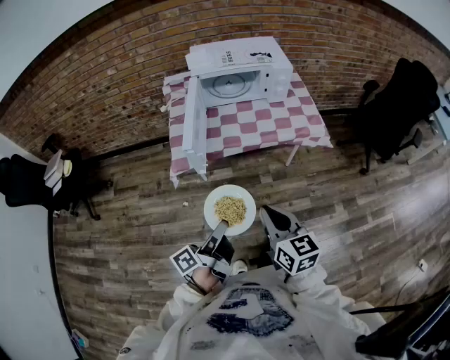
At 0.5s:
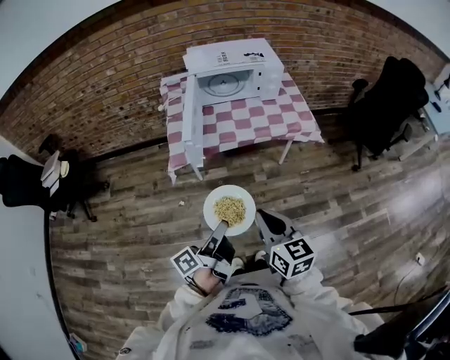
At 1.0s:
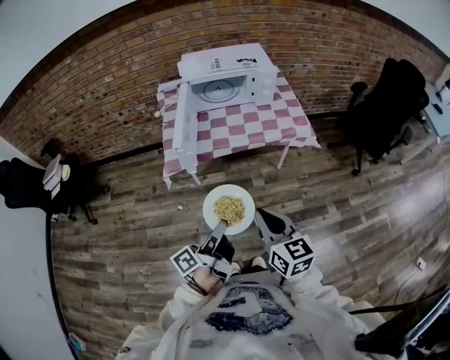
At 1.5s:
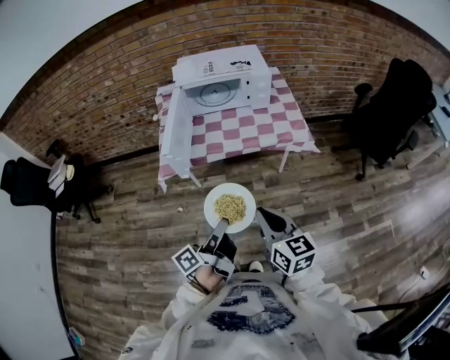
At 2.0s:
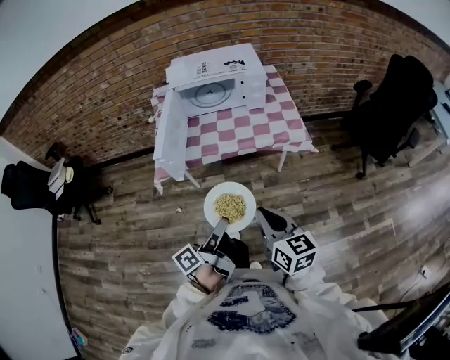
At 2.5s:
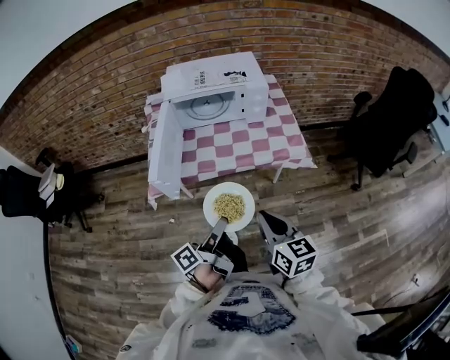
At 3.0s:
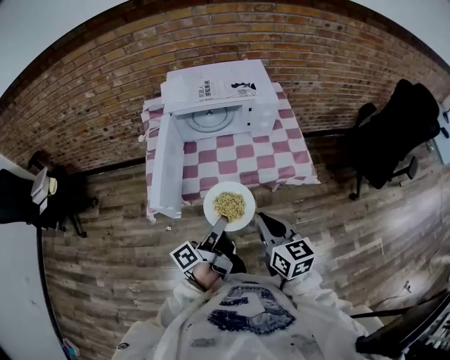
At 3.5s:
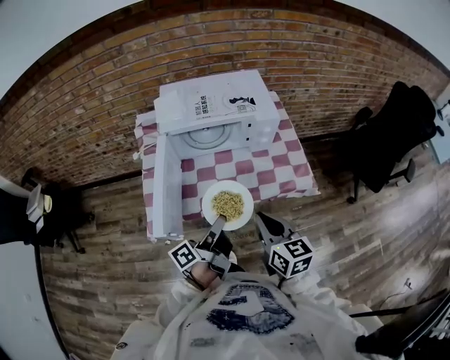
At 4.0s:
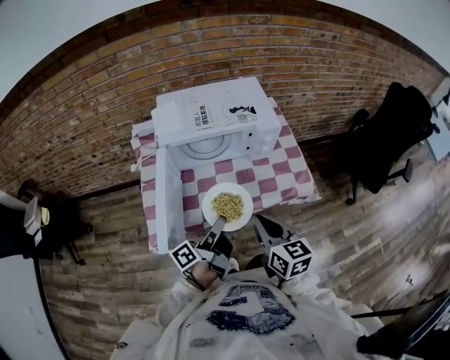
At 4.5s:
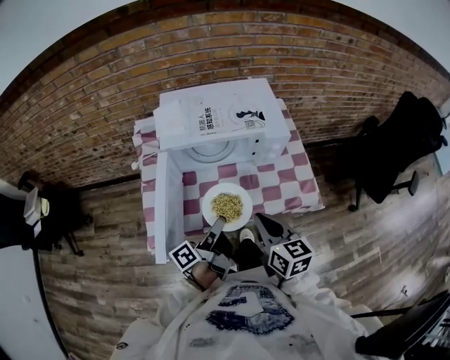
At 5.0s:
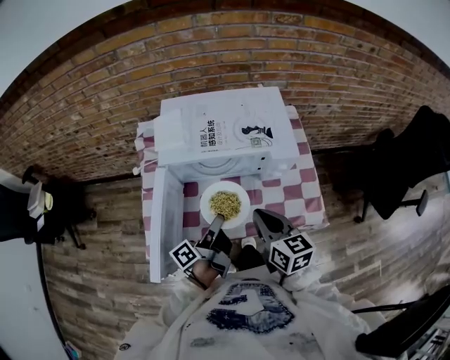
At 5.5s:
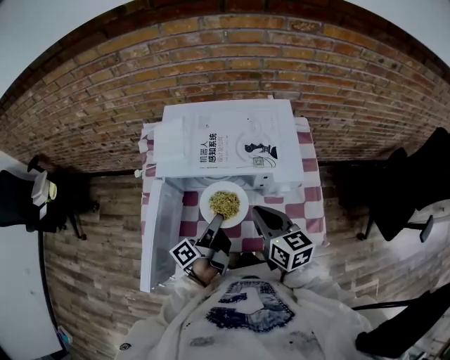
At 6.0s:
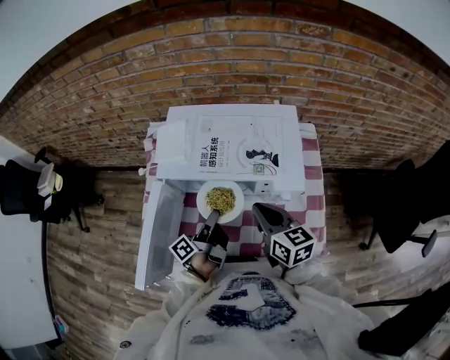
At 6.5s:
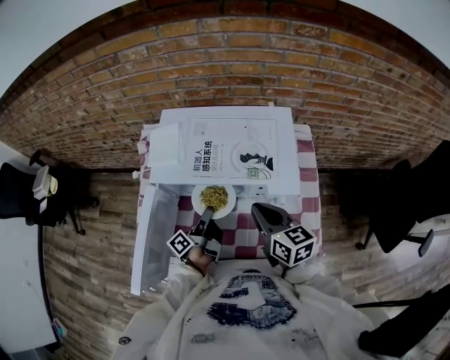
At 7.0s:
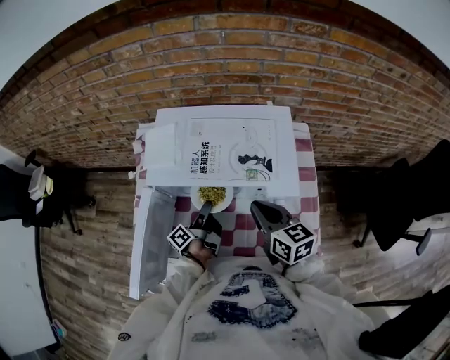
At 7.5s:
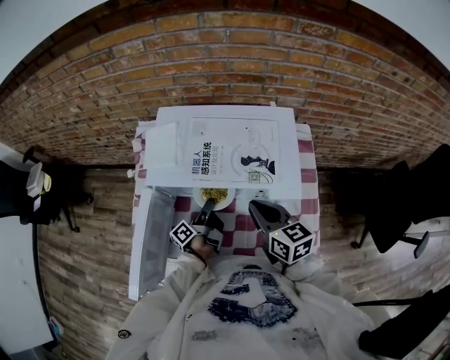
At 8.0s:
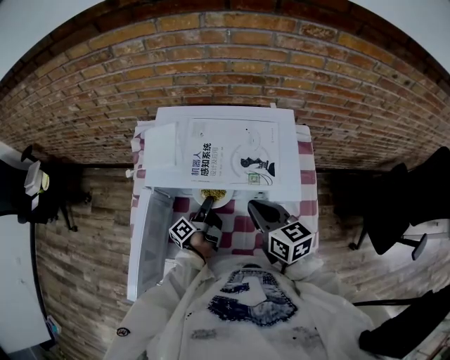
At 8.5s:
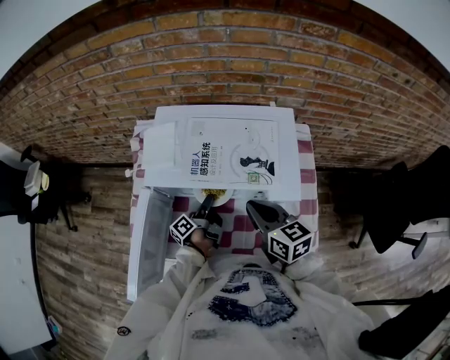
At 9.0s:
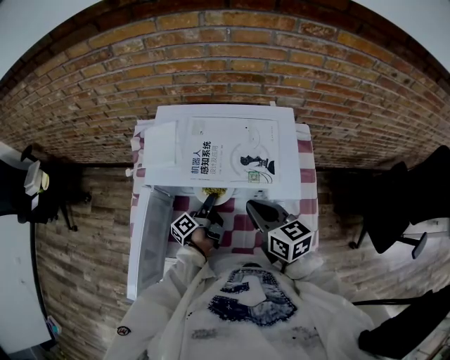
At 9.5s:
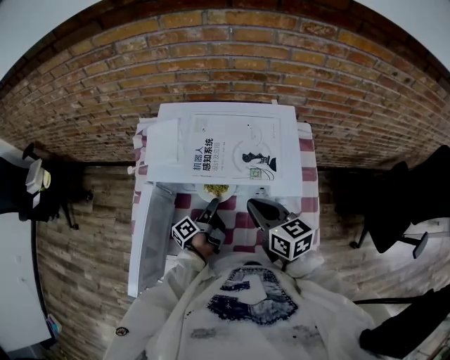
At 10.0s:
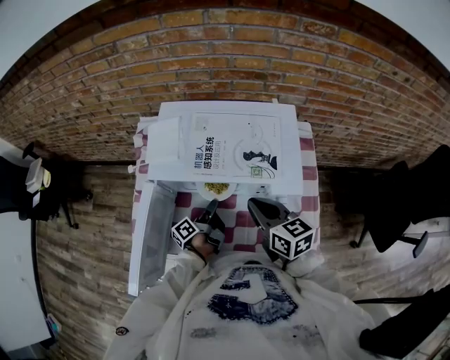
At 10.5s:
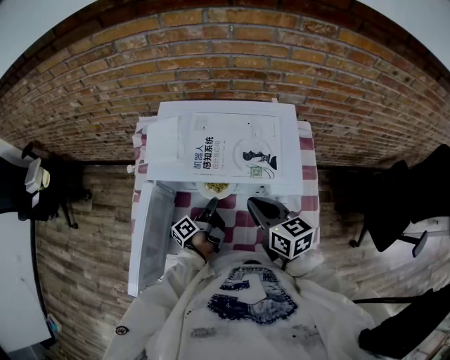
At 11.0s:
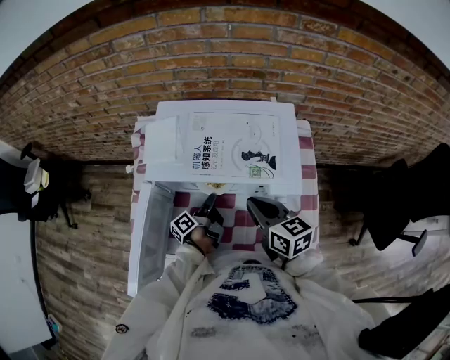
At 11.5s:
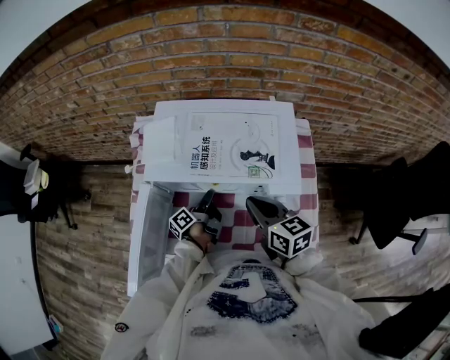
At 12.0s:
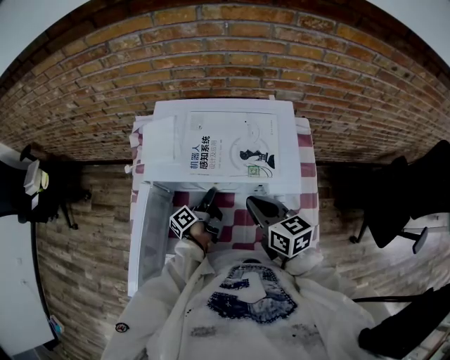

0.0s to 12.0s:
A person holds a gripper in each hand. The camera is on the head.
0.0s to 2.0s: The right gripper ends up some 10 cm from where it was.
2.0s to 4.0s: The right gripper changes place by about 30 cm.
4.0s to 6.0s: The right gripper changes place by roughly 25 cm, and swivels about 20 degrees.

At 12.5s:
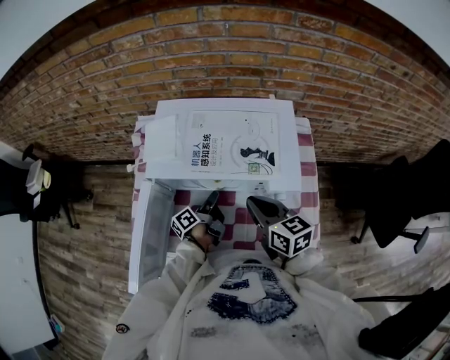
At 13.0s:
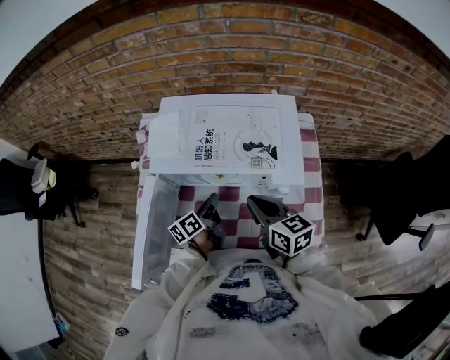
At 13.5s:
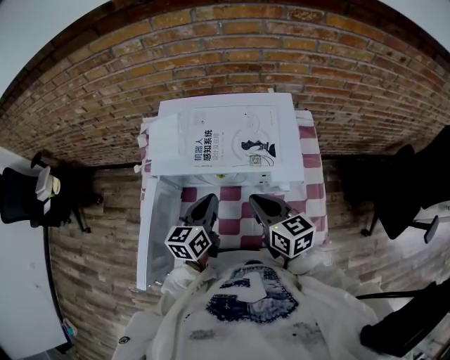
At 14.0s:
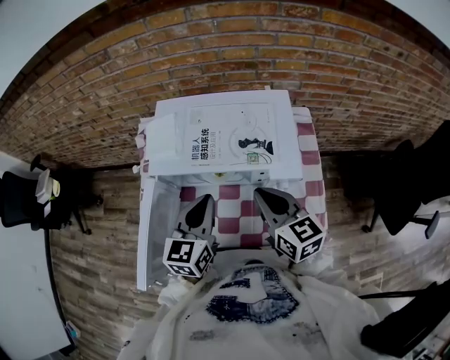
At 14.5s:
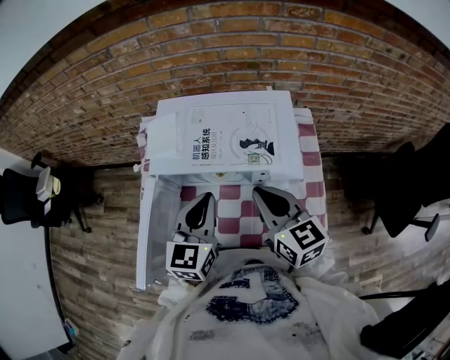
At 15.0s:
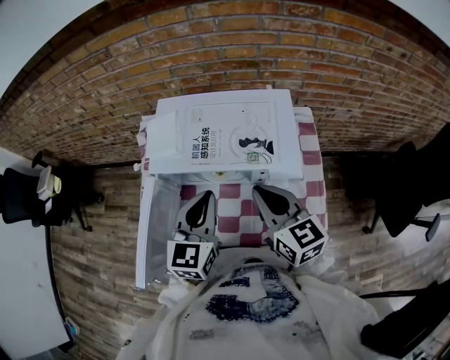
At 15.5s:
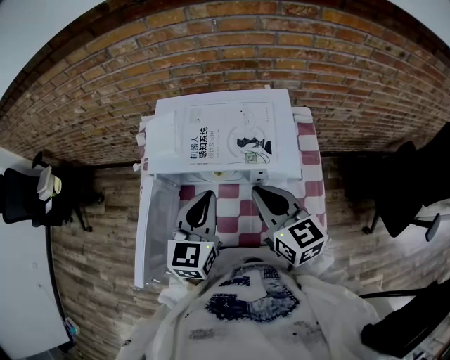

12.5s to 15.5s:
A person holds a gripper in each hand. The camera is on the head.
12.5s to 14.0s: The right gripper heads upward, covering roughly 5 cm.

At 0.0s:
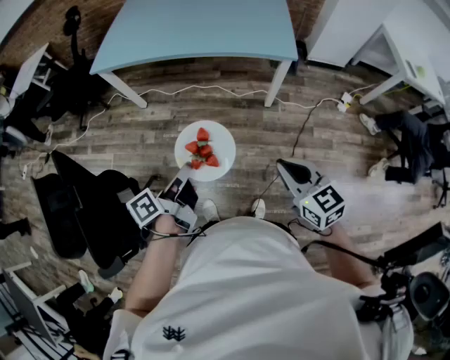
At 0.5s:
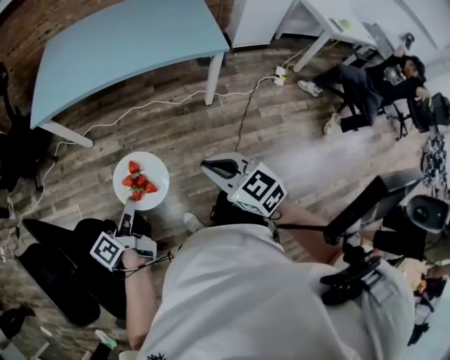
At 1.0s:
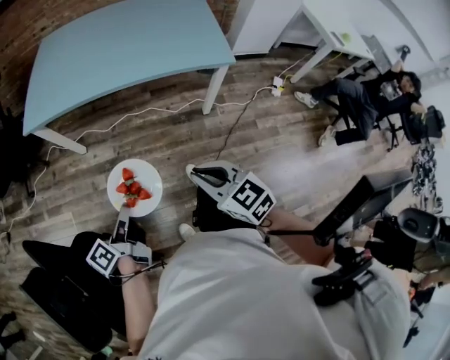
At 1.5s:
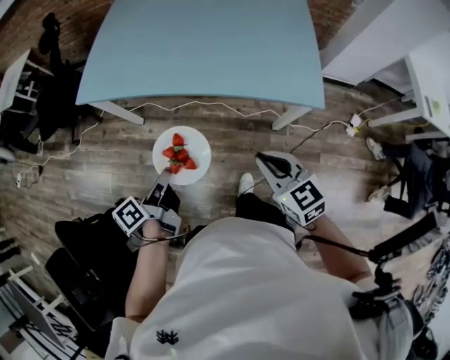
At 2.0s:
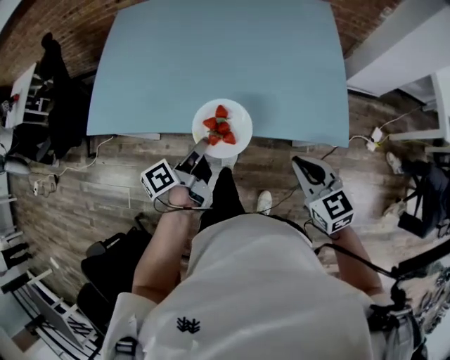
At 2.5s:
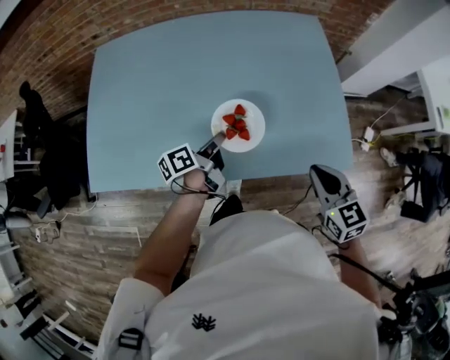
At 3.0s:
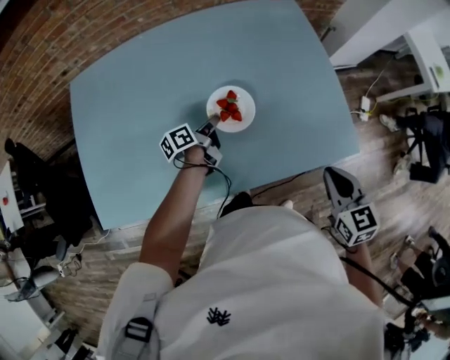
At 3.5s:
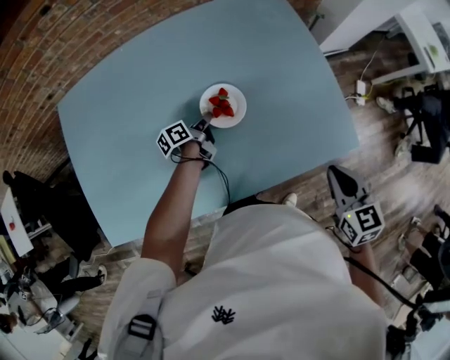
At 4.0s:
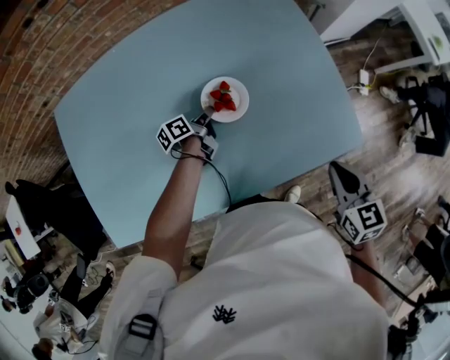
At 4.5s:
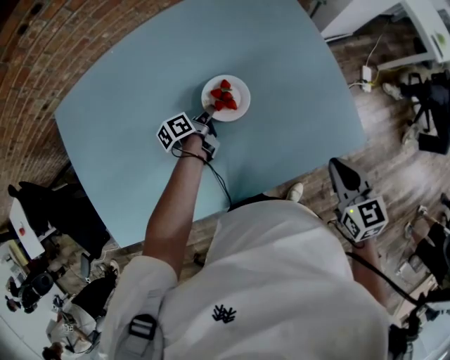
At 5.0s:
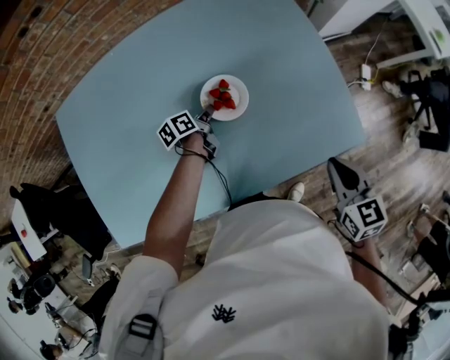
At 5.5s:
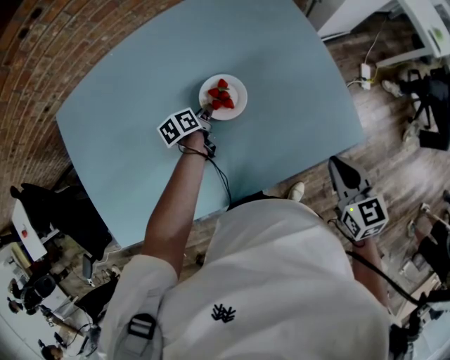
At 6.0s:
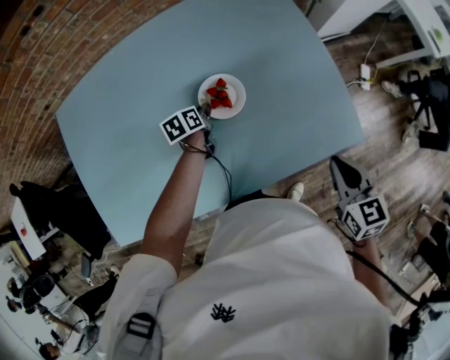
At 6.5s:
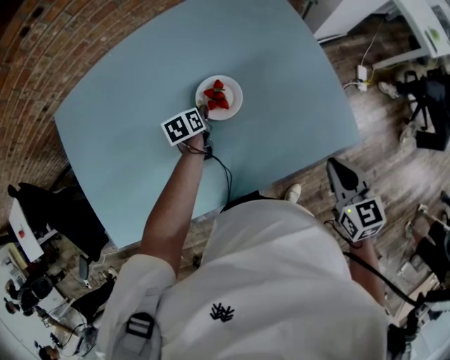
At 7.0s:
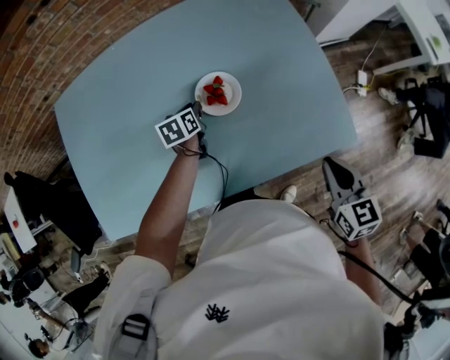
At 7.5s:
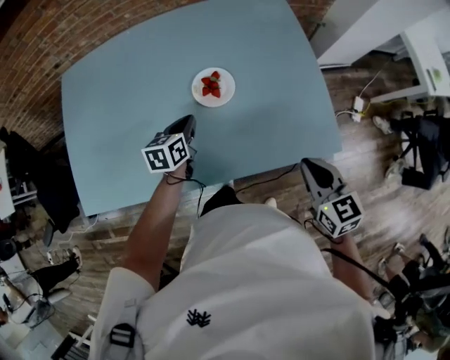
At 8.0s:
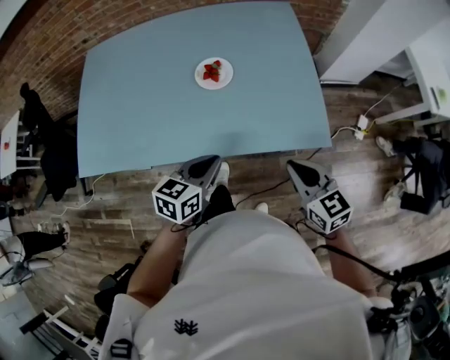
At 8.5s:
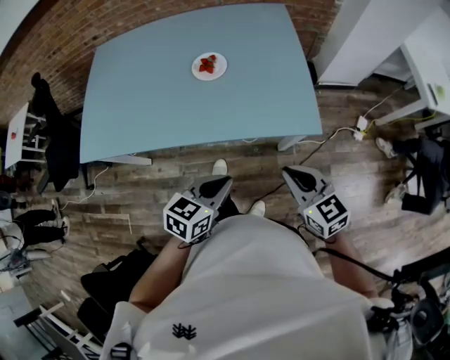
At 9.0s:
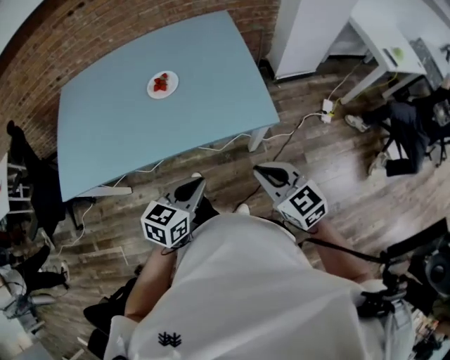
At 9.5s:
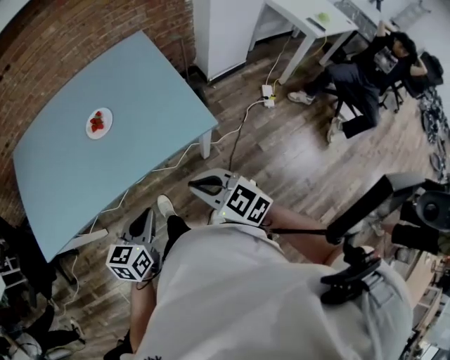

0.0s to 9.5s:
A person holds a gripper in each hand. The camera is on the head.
0.0s to 2.0s: The left gripper travels upward by some 5 cm, goes backward and returns, about 15 cm each way, and turns by about 30 degrees. The right gripper moves forward and backward over roughly 15 cm, changing direction 2 times, and turns by about 30 degrees.
2.0s to 4.0s: The left gripper ends up about 40 cm from where it was, and changes its angle by approximately 30 degrees; the right gripper moves about 15 cm, and swivels approximately 40 degrees.
4.0s to 5.5s: The left gripper changes its angle by approximately 20 degrees.
5.5s to 7.5s: The left gripper is displaced upward and backward by roughly 15 cm, and swivels approximately 30 degrees.
7.5s to 9.5s: The right gripper goes roughly 20 cm backward, and rotates roughly 20 degrees. Meanwhile the left gripper goes about 40 cm backward and to the right, and changes its angle by some 20 degrees.

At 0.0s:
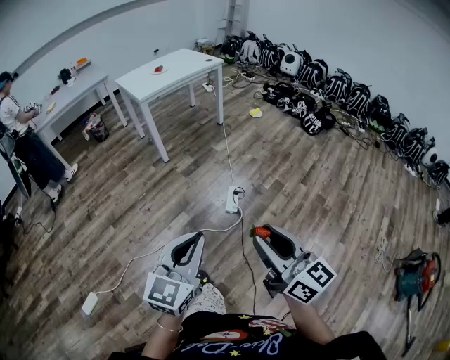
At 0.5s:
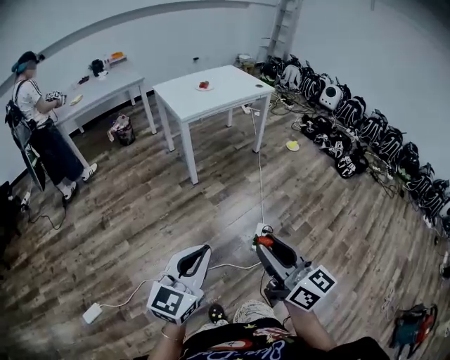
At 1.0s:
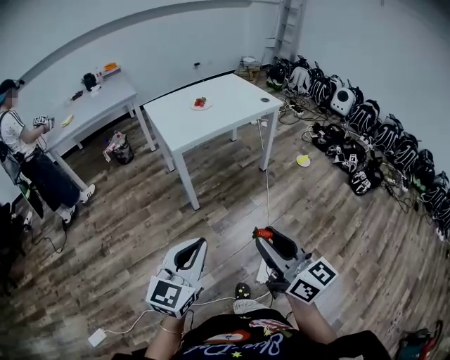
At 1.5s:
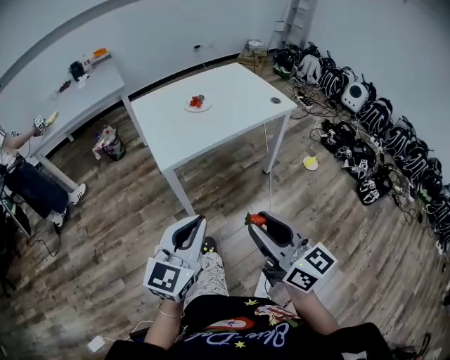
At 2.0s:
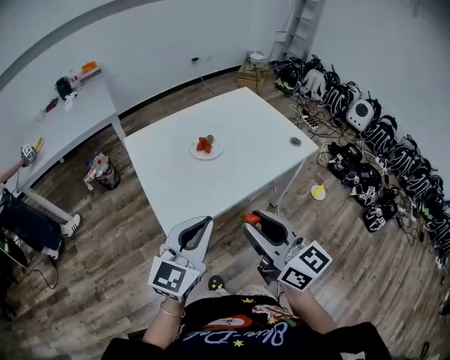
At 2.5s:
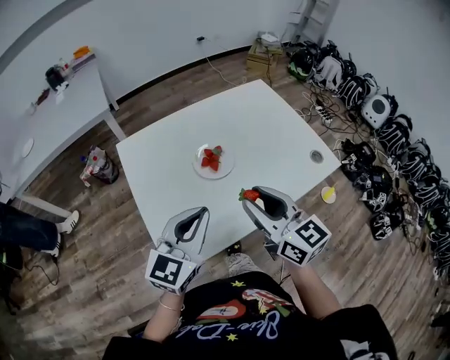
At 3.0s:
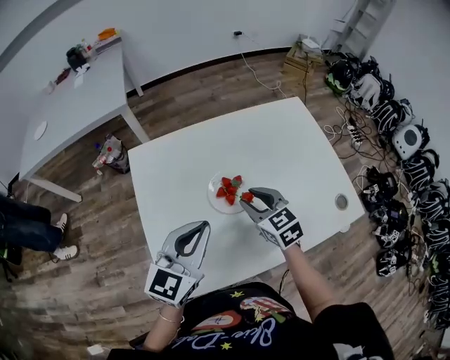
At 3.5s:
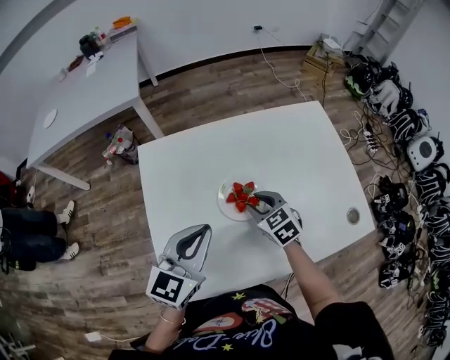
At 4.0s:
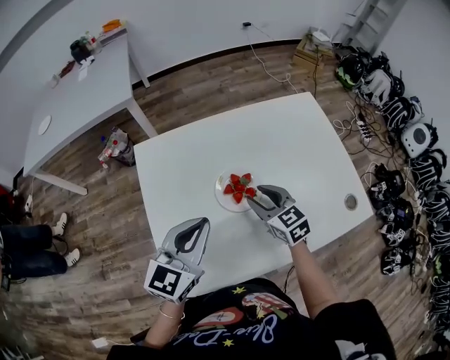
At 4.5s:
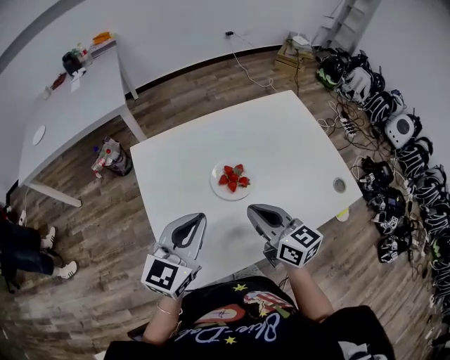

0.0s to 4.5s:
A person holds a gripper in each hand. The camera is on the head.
0.0s to 2.0s: Both grippers are carried forward, some 1 m.
2.0s to 4.5s: Both grippers move forward, about 30 cm. The right gripper changes its angle by roughly 20 degrees, and closes.
